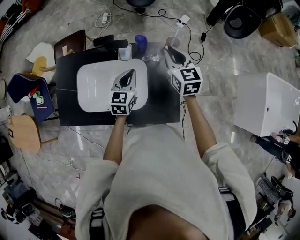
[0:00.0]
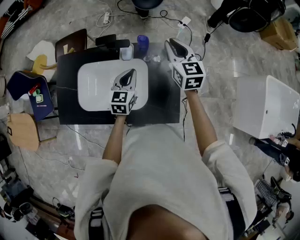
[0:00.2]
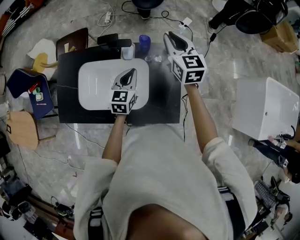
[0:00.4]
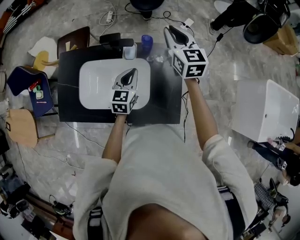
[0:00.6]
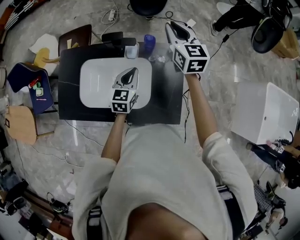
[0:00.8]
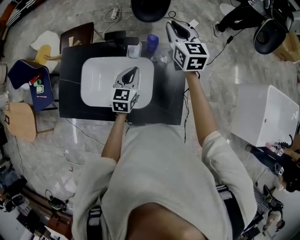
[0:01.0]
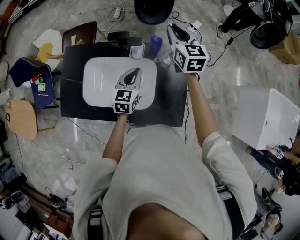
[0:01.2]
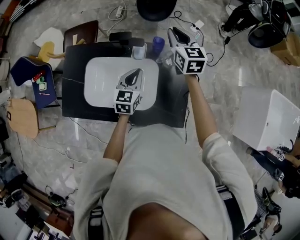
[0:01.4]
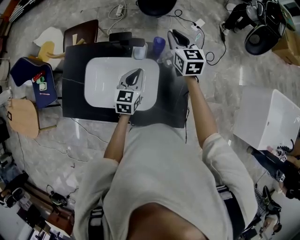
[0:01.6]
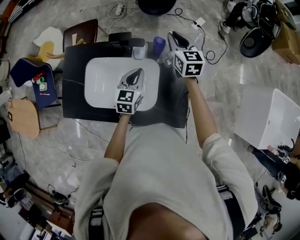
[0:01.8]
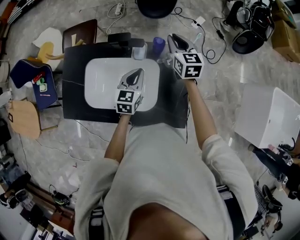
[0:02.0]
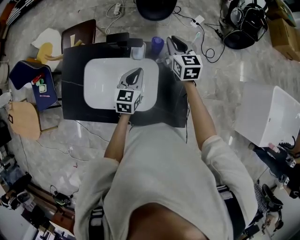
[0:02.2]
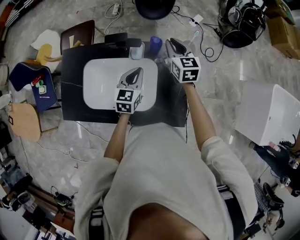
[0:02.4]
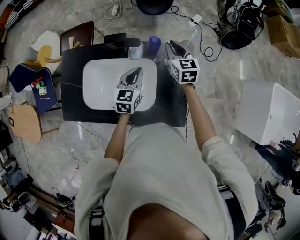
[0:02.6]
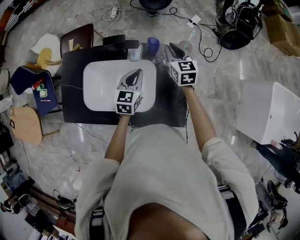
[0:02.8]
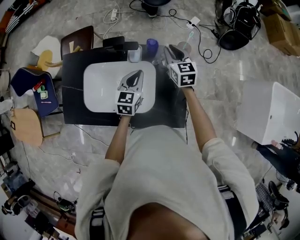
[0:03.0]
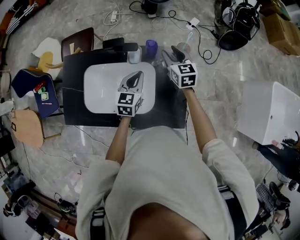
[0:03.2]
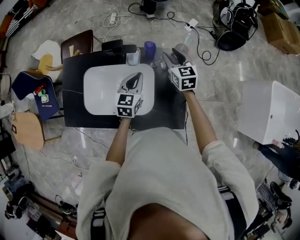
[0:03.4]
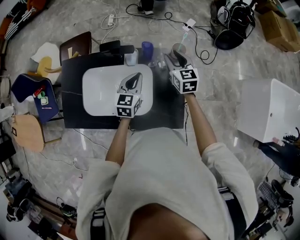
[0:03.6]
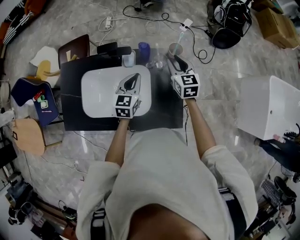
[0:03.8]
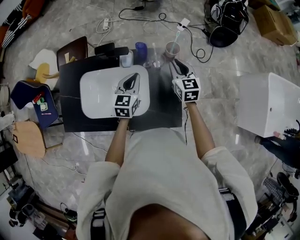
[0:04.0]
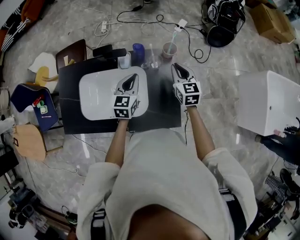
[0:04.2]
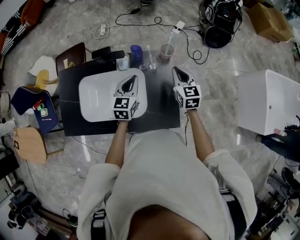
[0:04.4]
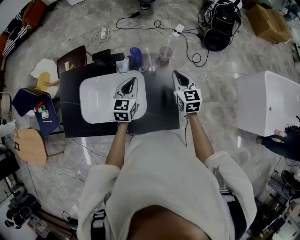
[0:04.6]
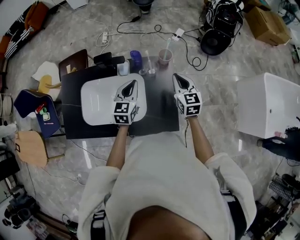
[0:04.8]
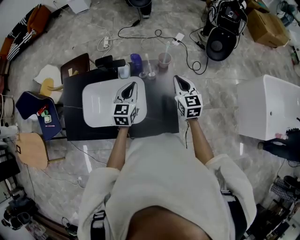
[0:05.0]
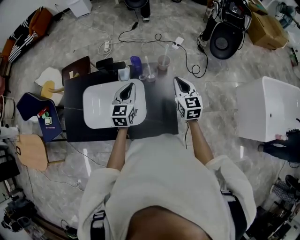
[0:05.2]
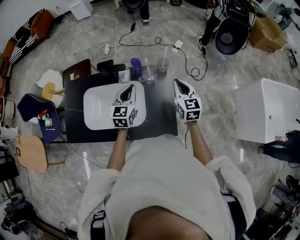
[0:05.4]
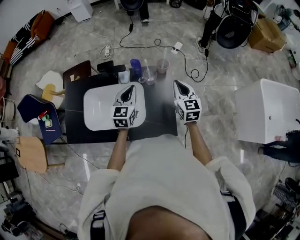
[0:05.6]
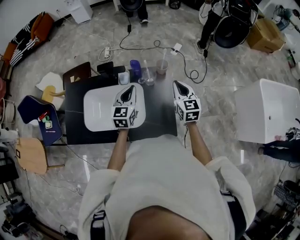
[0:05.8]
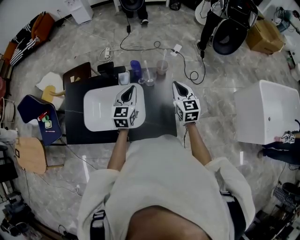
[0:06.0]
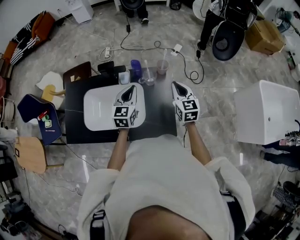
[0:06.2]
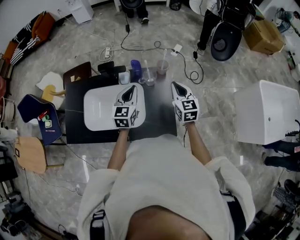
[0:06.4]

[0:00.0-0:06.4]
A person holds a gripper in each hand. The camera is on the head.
0.0 to 1.6 s: The right gripper travels forward and to the left by roughly 10 cm.
1.6 to 3.2 s: The right gripper is displaced downward by about 5 cm, and opens its fingers.
3.2 to 4.8 s: The left gripper ends up roughly 5 cm from where it was; the right gripper travels backward and to the right by approximately 15 cm, and closes.
4.8 to 6.4 s: The grippers stay close to where they were, moving slightly.

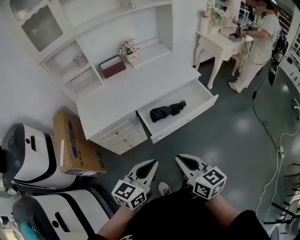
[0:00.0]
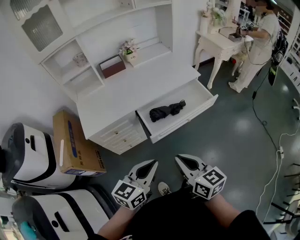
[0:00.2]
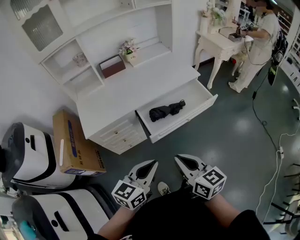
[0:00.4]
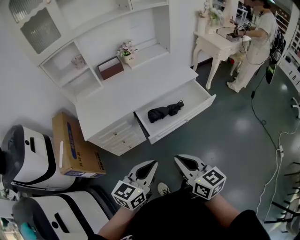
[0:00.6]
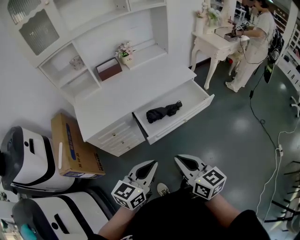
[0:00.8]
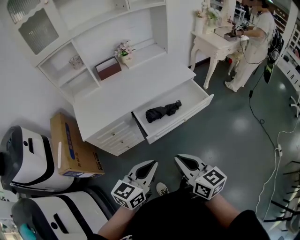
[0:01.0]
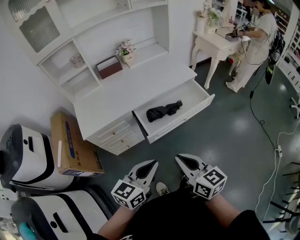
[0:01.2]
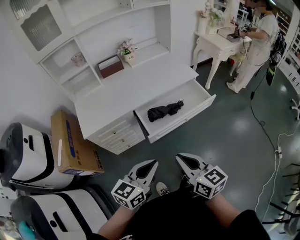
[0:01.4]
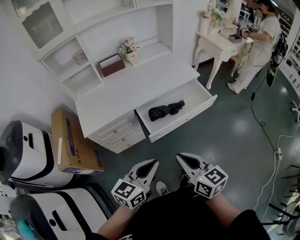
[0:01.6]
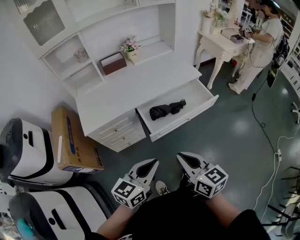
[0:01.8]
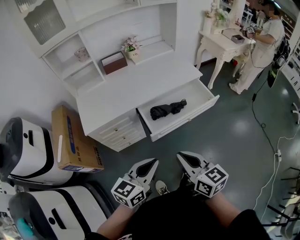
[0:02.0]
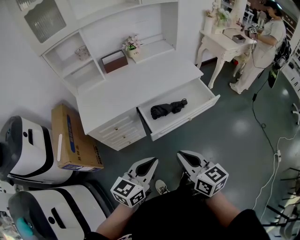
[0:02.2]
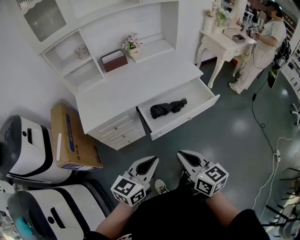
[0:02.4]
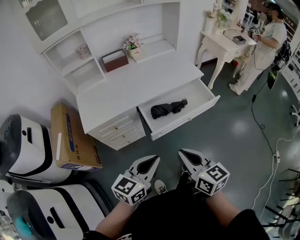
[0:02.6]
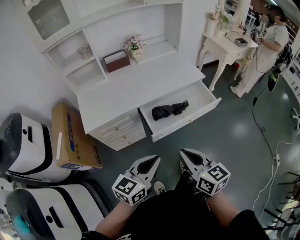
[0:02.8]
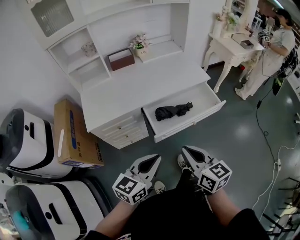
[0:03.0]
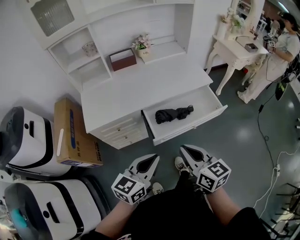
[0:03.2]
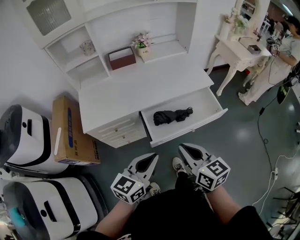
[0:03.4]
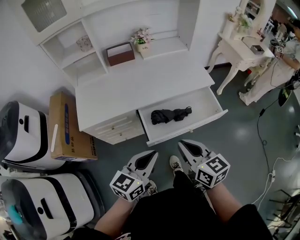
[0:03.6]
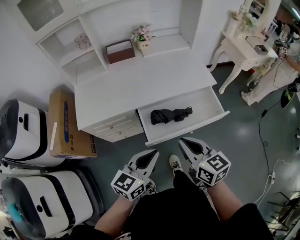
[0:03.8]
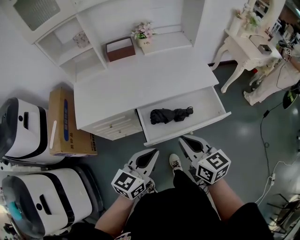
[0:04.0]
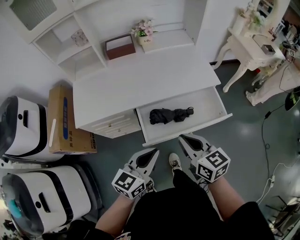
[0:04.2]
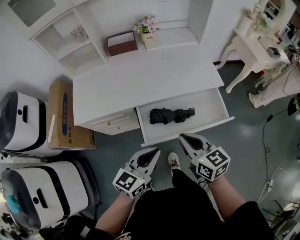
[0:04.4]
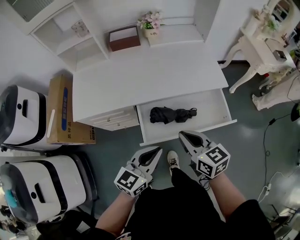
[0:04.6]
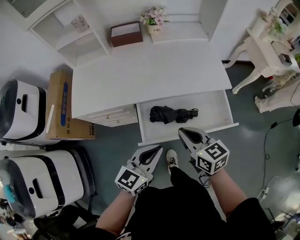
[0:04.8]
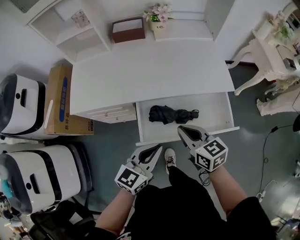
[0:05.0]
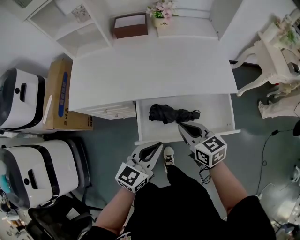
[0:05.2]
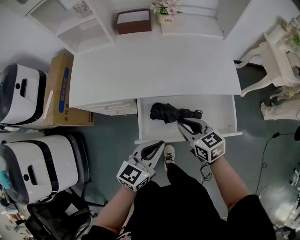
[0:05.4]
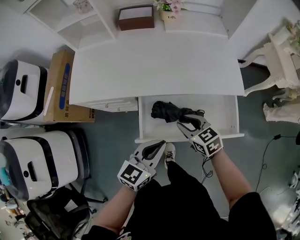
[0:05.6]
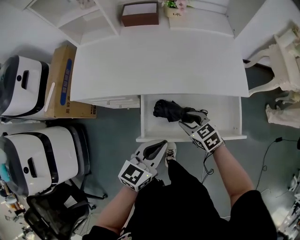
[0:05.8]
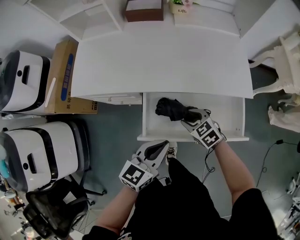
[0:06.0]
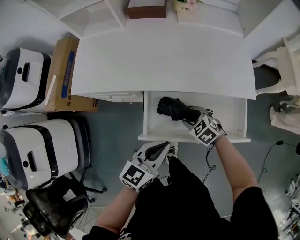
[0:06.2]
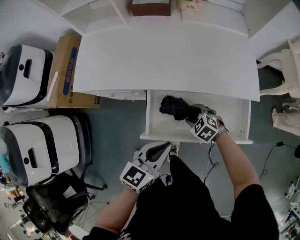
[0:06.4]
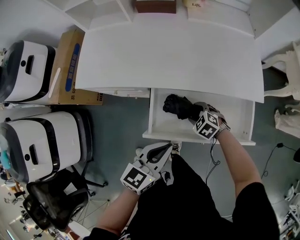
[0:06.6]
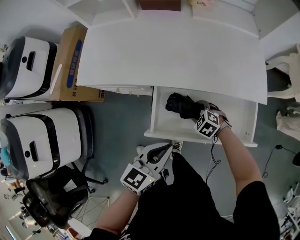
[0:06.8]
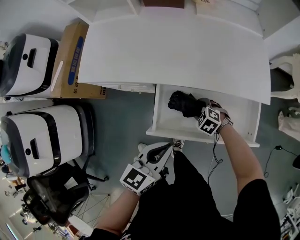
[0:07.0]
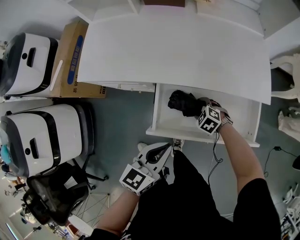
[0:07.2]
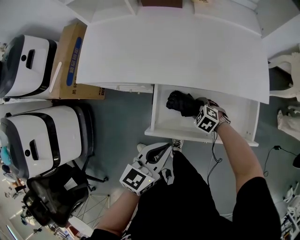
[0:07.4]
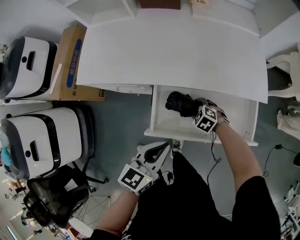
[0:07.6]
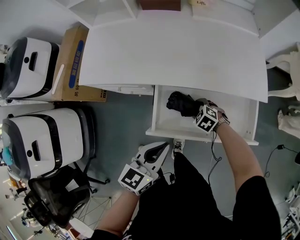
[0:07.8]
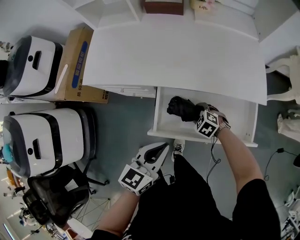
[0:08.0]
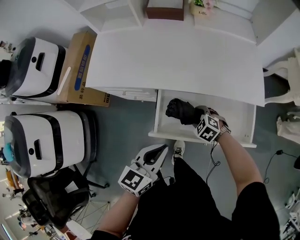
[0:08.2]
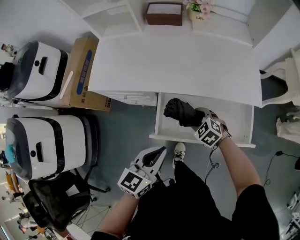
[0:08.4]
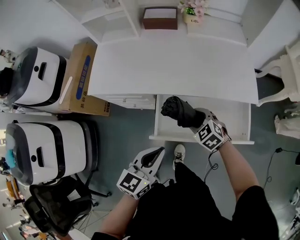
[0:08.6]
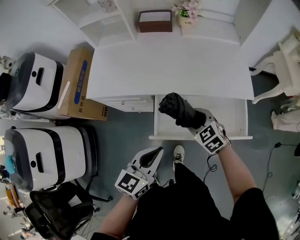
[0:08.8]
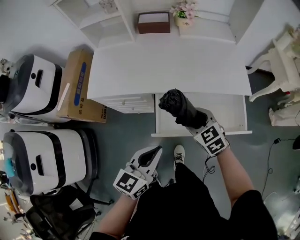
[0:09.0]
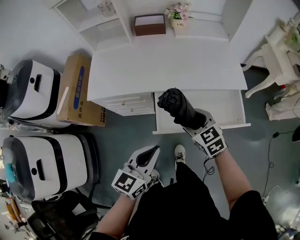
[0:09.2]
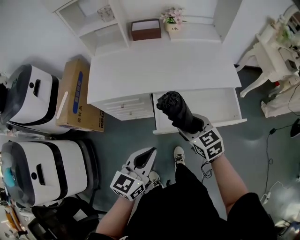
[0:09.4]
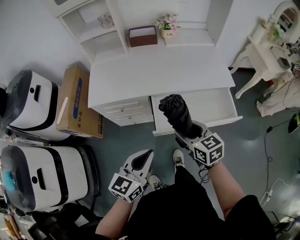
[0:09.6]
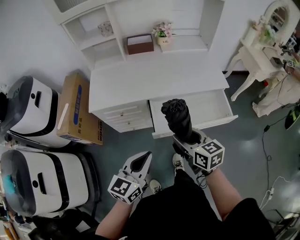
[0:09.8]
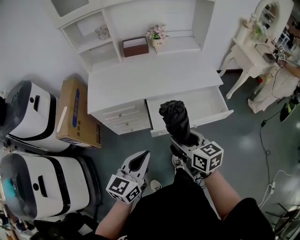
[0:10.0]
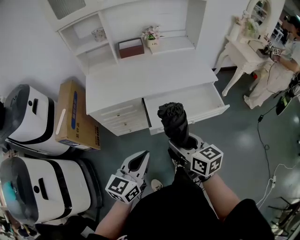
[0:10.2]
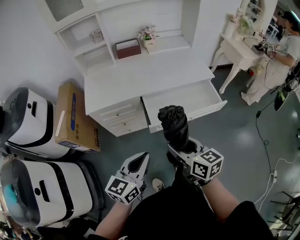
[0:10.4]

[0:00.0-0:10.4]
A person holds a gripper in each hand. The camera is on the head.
0.0 to 1.4 s: The grippers move only a little.
1.4 to 3.0 s: The right gripper heads forward, covering roughly 5 cm.
3.0 to 4.4 s: The left gripper heads forward and to the right, covering about 15 cm, while the right gripper goes roughly 20 cm forward.
4.4 to 6.0 s: The left gripper is displaced downward and forward by approximately 10 cm, while the right gripper is displaced downward and forward by roughly 25 cm, rotates about 50 degrees, and opens its fingers.
6.0 to 7.4 s: The right gripper heads downward, covering some 10 cm, and turns by roughly 30 degrees.
7.4 to 9.0 s: The right gripper heads upward, covering some 25 cm, and turns by approximately 40 degrees; the left gripper shifts approximately 10 cm upward and to the left.
9.0 to 10.4 s: The right gripper is displaced backward and upward by about 30 cm, and turns by approximately 50 degrees. The left gripper is displaced backward and to the left by about 20 cm.

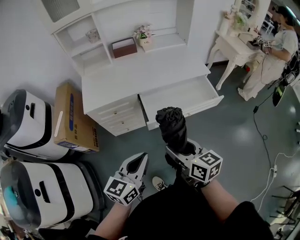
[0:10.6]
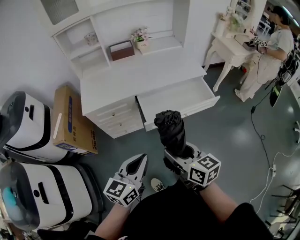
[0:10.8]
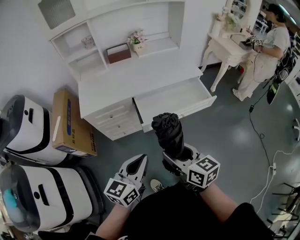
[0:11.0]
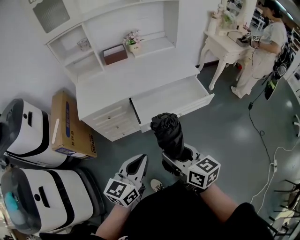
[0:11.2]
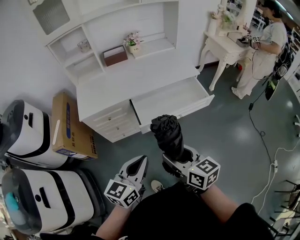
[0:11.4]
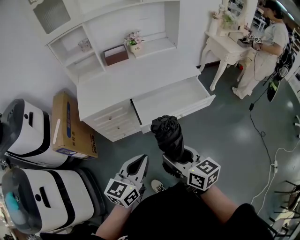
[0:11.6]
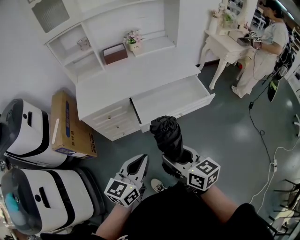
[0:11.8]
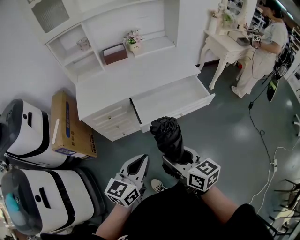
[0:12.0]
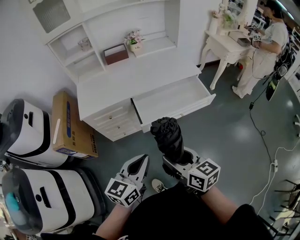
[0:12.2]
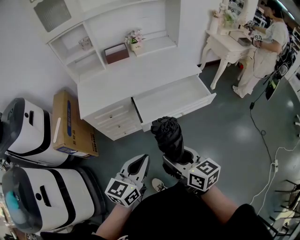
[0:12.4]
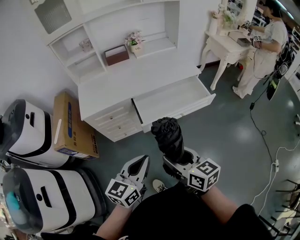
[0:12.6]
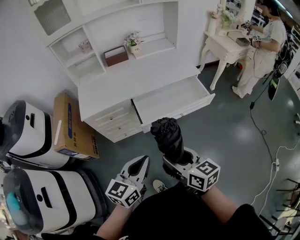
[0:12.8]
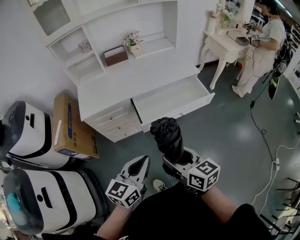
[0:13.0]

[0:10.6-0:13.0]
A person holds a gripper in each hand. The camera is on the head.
10.6 to 13.0 s: There are only small adjustments of the grippers.

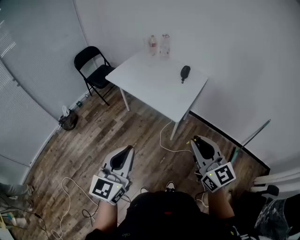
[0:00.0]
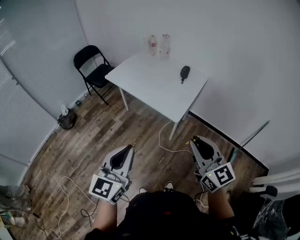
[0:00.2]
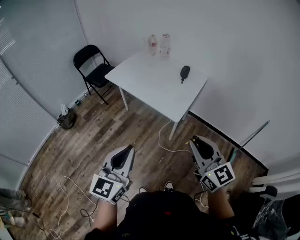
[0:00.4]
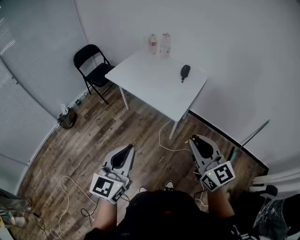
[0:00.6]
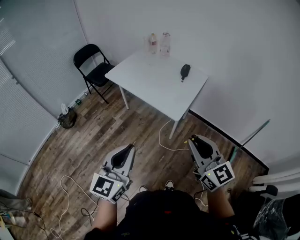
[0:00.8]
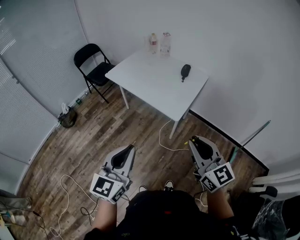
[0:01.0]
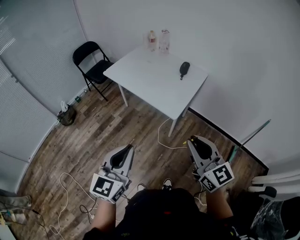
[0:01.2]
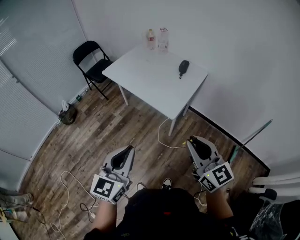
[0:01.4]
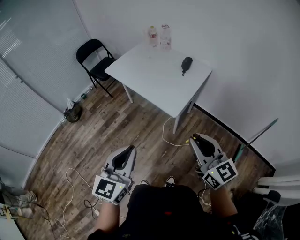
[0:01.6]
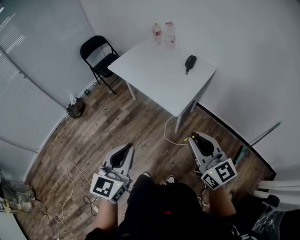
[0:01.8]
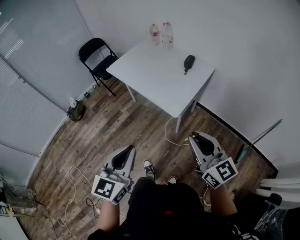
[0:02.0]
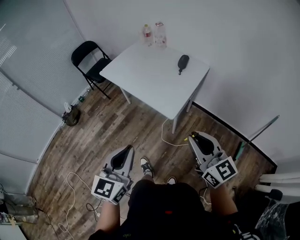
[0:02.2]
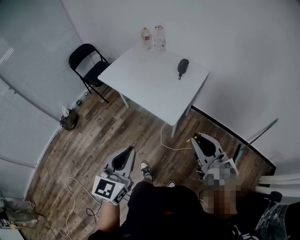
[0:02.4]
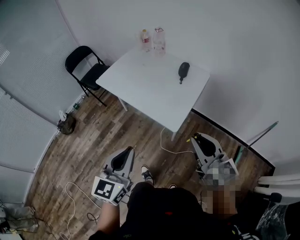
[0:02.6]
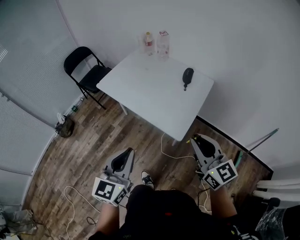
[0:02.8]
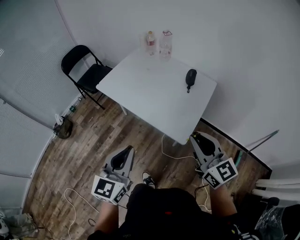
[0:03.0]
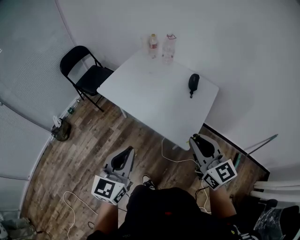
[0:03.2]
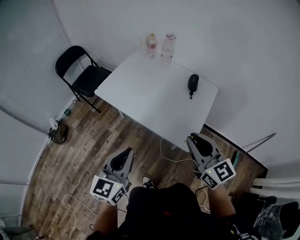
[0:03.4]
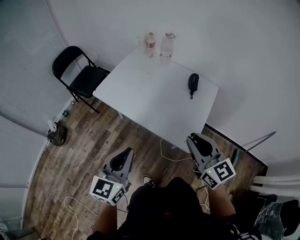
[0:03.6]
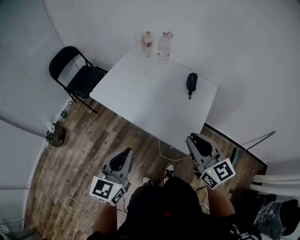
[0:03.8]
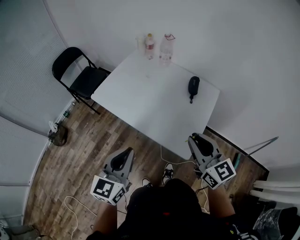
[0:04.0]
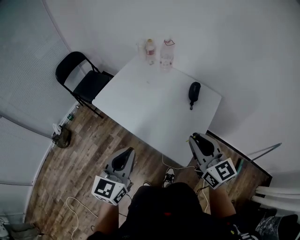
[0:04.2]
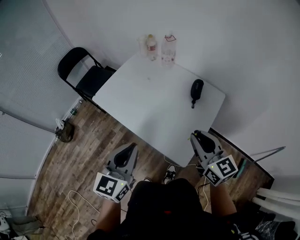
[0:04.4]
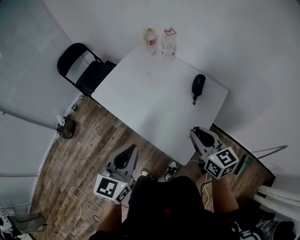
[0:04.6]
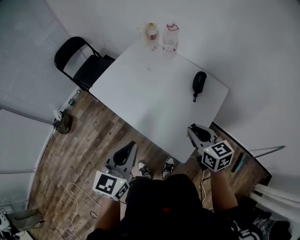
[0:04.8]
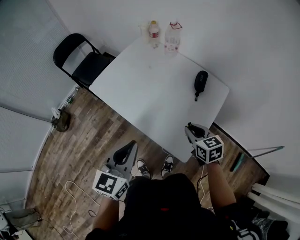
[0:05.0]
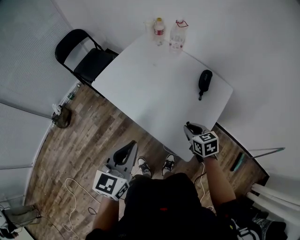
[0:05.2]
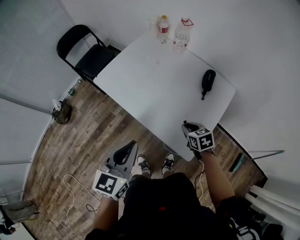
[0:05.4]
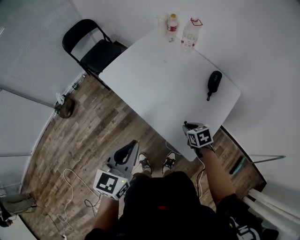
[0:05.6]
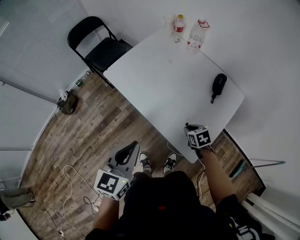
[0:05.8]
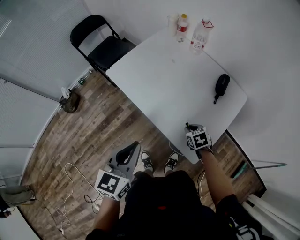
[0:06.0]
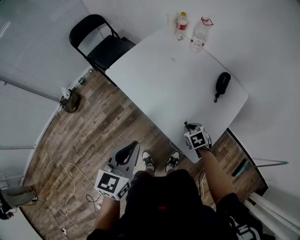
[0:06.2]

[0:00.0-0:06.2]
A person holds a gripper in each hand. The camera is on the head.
0.0 to 1.6 s: The grippers both shift to the right by roughly 10 cm.
1.6 to 3.2 s: Both grippers travel together forward and to the left, about 30 cm.
3.2 to 4.6 s: The left gripper travels forward and to the right by approximately 15 cm. Meanwhile the right gripper goes approximately 20 cm forward, to the right and downward.
4.6 to 6.2 s: The left gripper shifts some 10 cm to the left and downward; the right gripper is displaced downward by about 30 cm, and tips its fingers downward by approximately 50 degrees.
